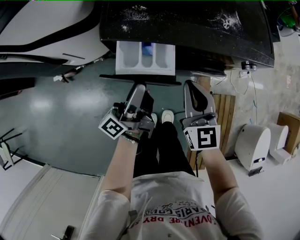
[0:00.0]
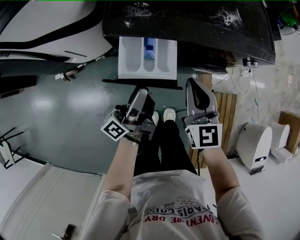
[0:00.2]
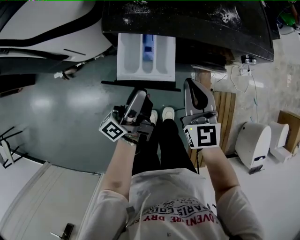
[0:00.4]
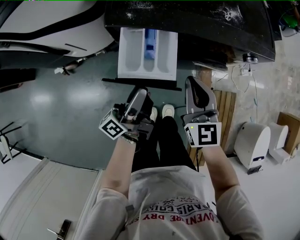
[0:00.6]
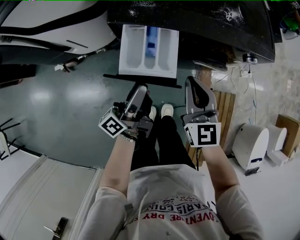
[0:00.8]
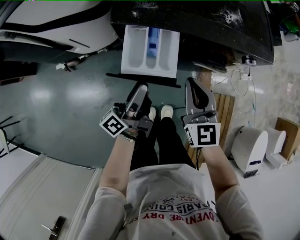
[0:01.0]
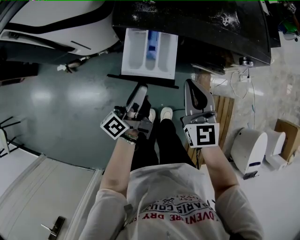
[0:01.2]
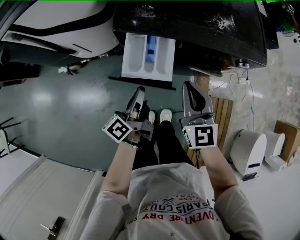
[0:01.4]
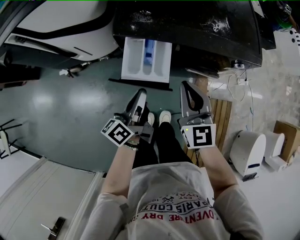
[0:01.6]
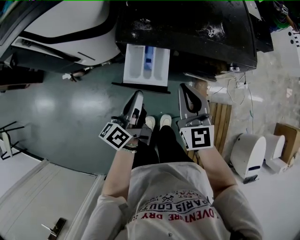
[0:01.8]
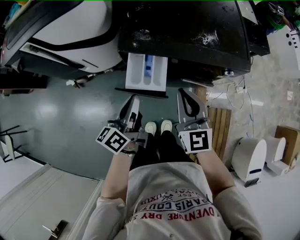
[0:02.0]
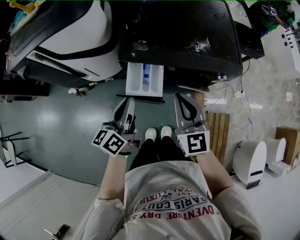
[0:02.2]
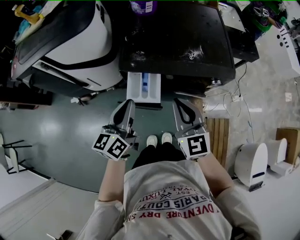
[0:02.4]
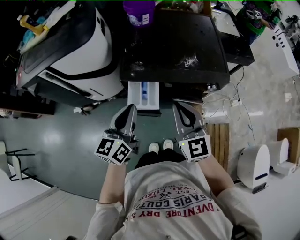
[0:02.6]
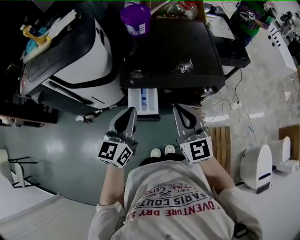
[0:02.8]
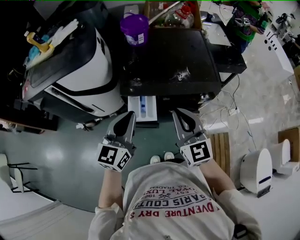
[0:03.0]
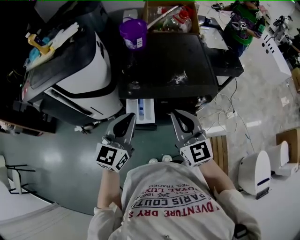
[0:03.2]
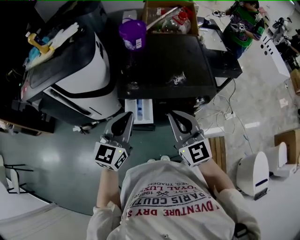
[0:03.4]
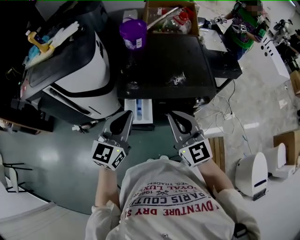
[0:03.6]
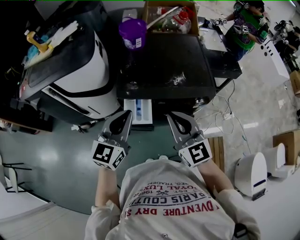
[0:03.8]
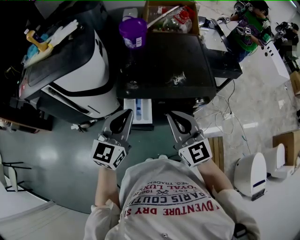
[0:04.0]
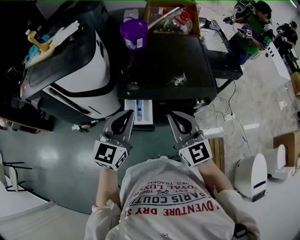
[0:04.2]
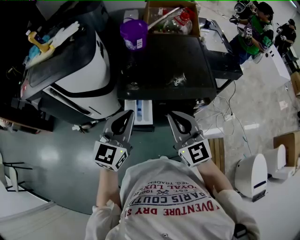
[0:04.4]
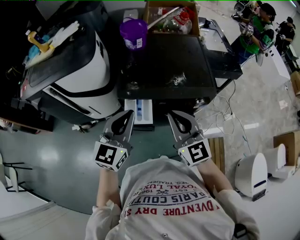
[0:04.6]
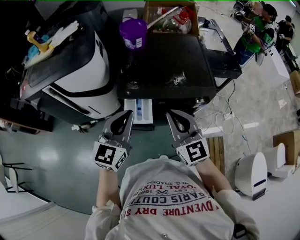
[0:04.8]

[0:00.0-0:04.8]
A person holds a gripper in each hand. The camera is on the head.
0:00.0 to 0:01.6: The left gripper heads backward, covering about 5 cm, turns by roughly 30 degrees, and closes its fingers. The right gripper travels upward by some 5 cm.
0:01.6 to 0:03.2: The two grippers go roughly 25 cm upward. The left gripper rotates around the line of its fingers by approximately 60 degrees, clockwise from behind.
0:03.2 to 0:04.8: The grippers make only small movements.

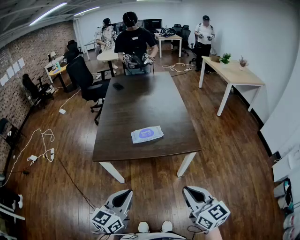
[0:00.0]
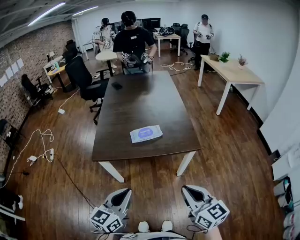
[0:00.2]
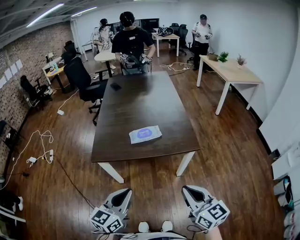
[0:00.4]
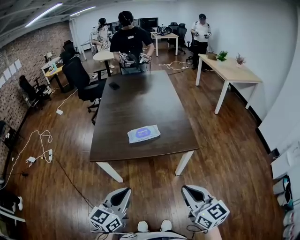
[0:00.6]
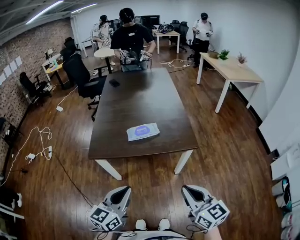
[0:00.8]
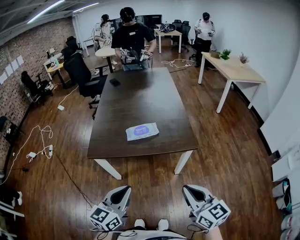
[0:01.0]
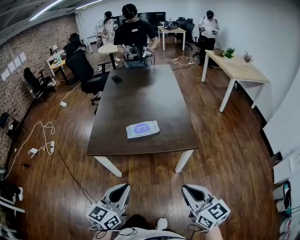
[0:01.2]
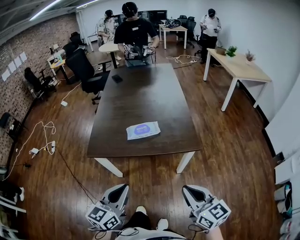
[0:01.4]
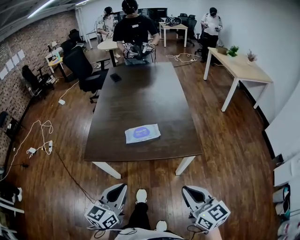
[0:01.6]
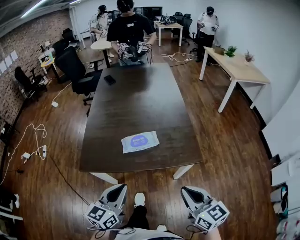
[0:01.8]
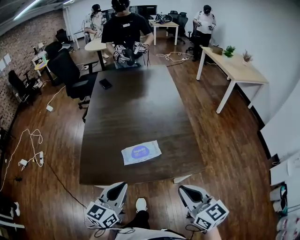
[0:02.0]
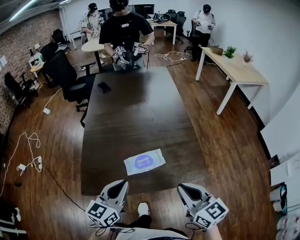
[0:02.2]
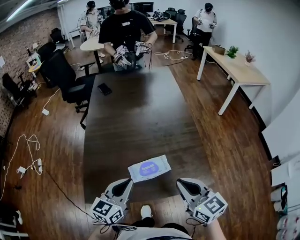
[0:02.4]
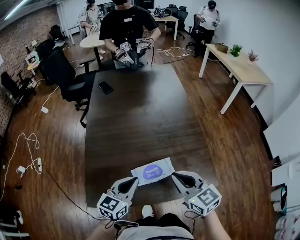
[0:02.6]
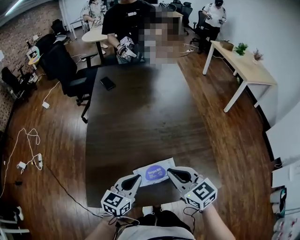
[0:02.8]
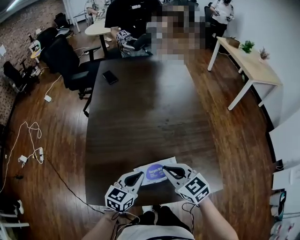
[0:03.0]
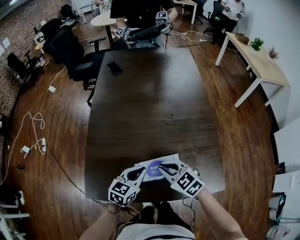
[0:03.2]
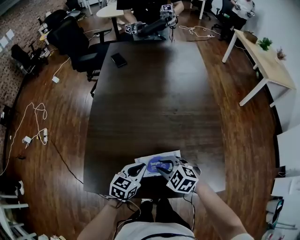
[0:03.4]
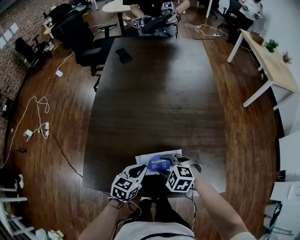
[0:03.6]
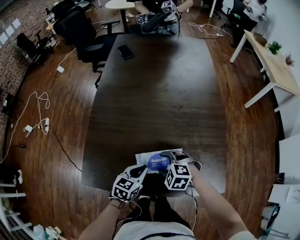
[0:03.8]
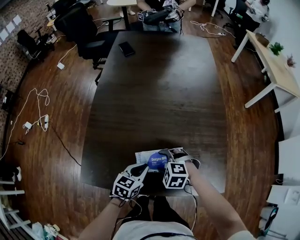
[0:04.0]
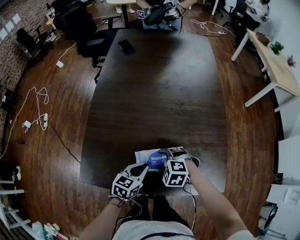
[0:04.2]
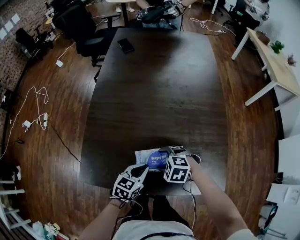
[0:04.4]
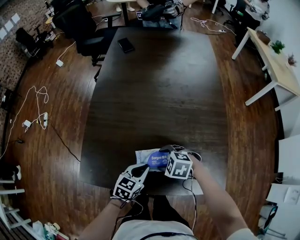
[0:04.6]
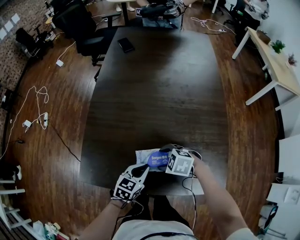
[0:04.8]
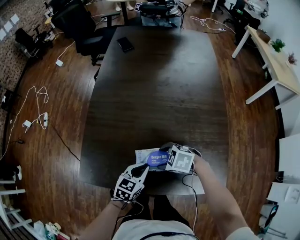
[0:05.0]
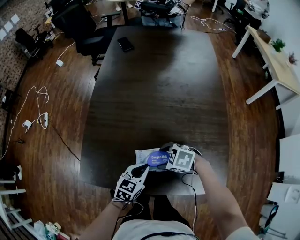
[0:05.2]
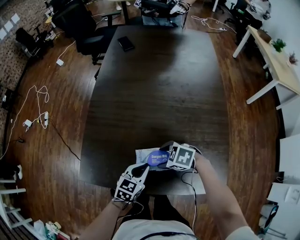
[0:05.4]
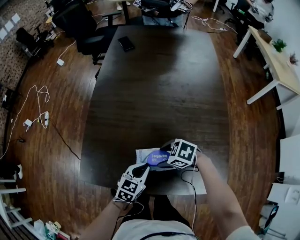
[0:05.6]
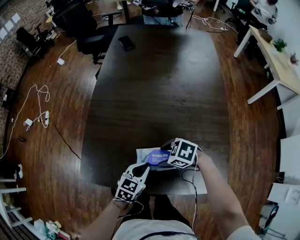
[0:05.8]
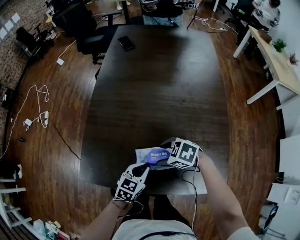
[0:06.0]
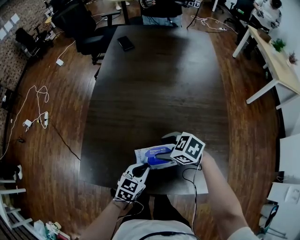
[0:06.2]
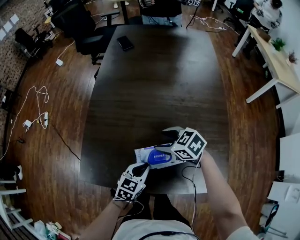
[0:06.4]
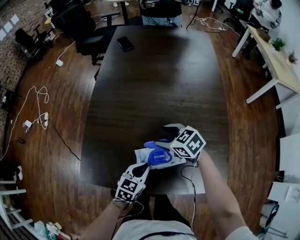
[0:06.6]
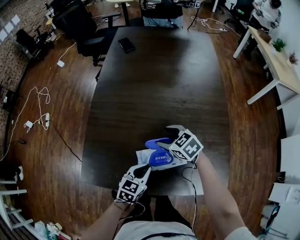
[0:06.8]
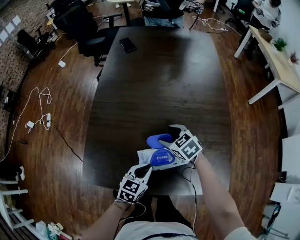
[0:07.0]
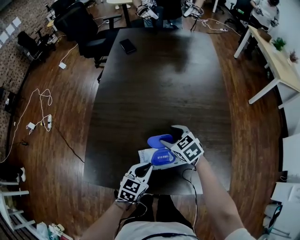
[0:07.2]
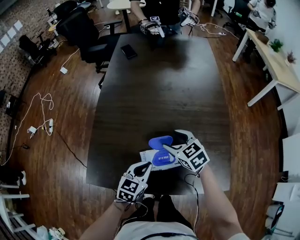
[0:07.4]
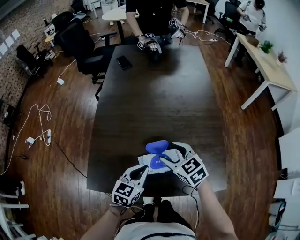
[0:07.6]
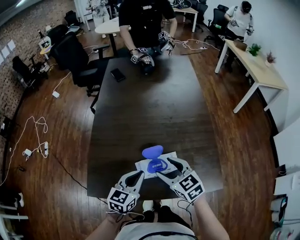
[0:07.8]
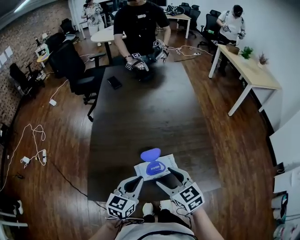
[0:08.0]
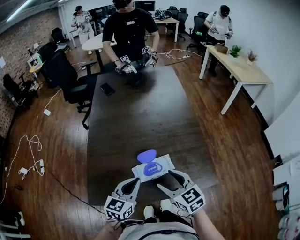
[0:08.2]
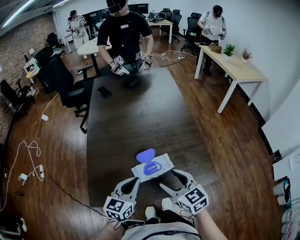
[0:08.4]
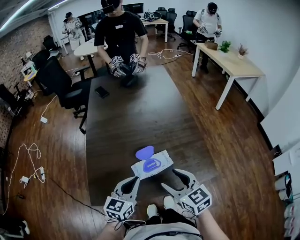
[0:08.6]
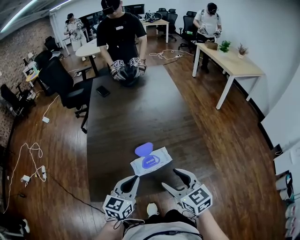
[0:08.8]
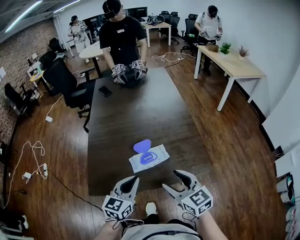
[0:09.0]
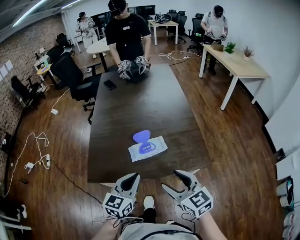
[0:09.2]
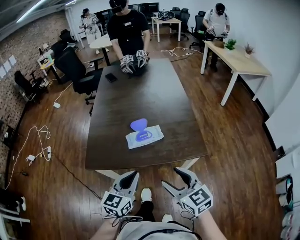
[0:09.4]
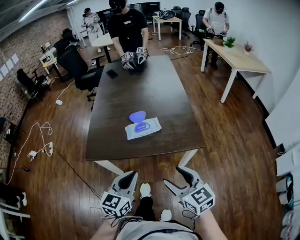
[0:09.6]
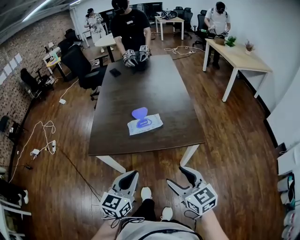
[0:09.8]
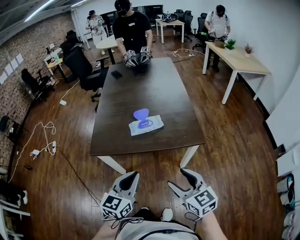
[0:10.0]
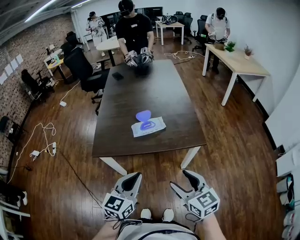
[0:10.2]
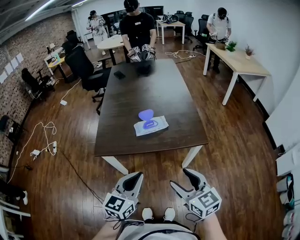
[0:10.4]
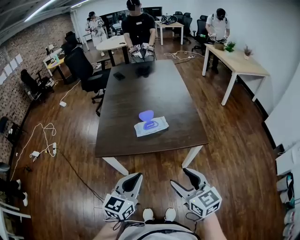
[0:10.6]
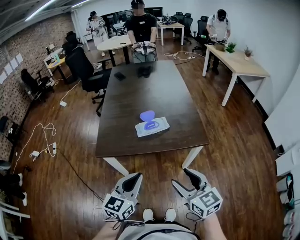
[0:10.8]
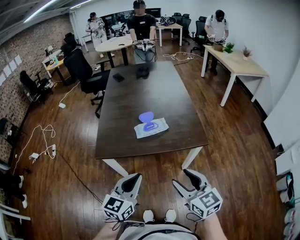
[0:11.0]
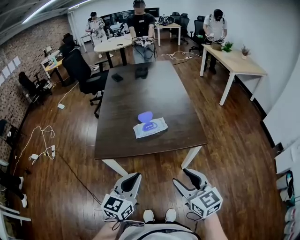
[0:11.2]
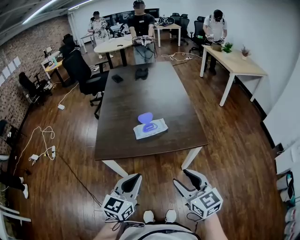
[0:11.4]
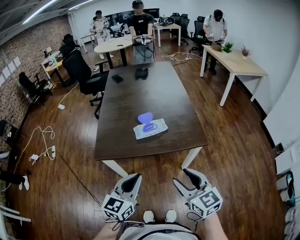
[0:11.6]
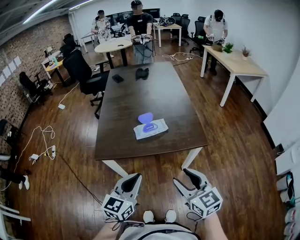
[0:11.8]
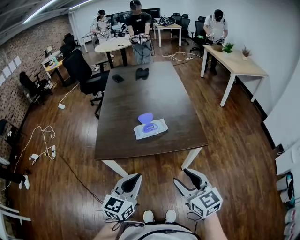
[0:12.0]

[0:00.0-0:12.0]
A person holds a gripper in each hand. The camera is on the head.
0:00.0 to 0:01.6: The right gripper moves forward and to the right, approximately 10 cm, while the left gripper is displaced forward by some 10 cm.
0:01.6 to 0:03.0: The left gripper goes roughly 40 cm forward. Meanwhile the right gripper goes some 40 cm forward and to the left, and swivels approximately 20 degrees.
0:03.0 to 0:04.4: Both grippers travel together downward, some 15 cm. The right gripper angles its fingers downward, by some 40 degrees, and opens its fingers.
0:04.4 to 0:06.0: The right gripper changes its angle by some 20 degrees.
0:06.0 to 0:07.6: Both grippers travel together upward, some 10 cm. The right gripper rotates roughly 50 degrees.
0:07.6 to 0:09.0: Both grippers travel together backward and upward, roughly 20 cm. The right gripper changes its angle by approximately 20 degrees.
0:09.0 to 0:10.4: The grippers both shift backward by roughly 25 cm.
0:10.4 to 0:12.0: The grippers make only small movements.

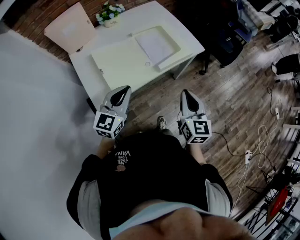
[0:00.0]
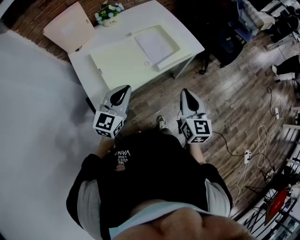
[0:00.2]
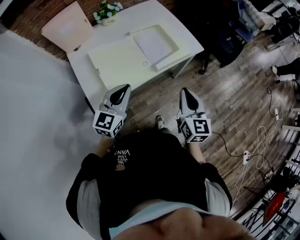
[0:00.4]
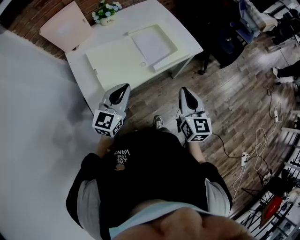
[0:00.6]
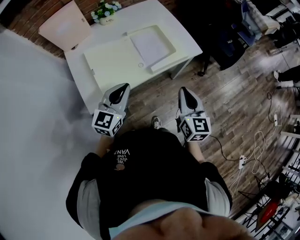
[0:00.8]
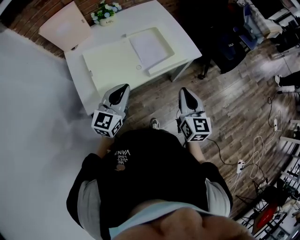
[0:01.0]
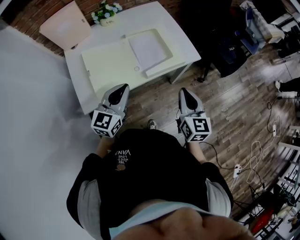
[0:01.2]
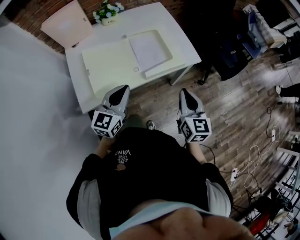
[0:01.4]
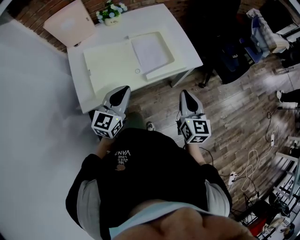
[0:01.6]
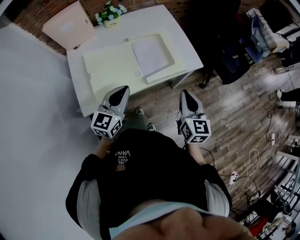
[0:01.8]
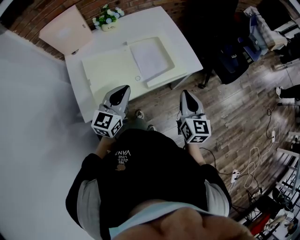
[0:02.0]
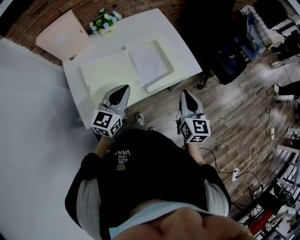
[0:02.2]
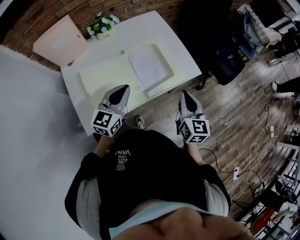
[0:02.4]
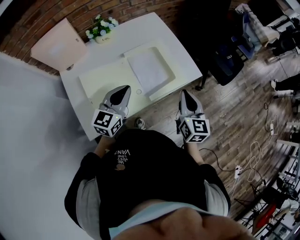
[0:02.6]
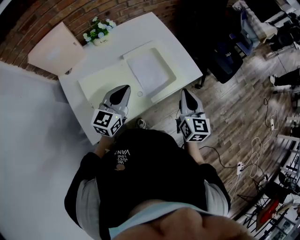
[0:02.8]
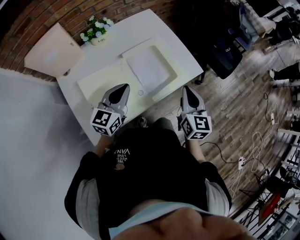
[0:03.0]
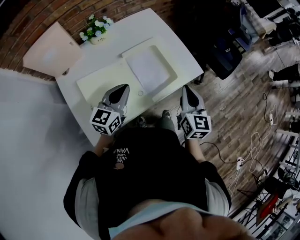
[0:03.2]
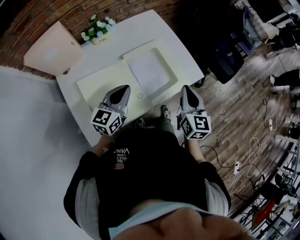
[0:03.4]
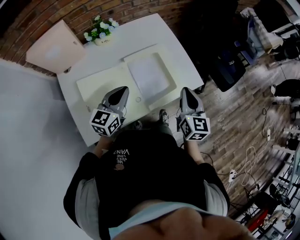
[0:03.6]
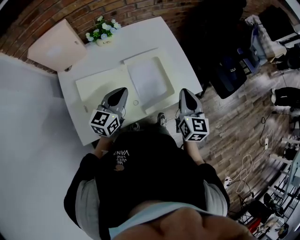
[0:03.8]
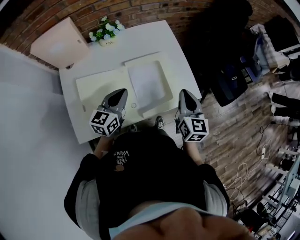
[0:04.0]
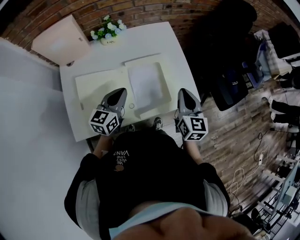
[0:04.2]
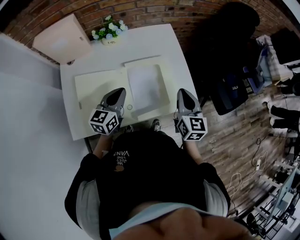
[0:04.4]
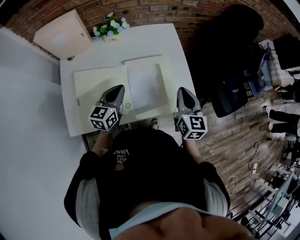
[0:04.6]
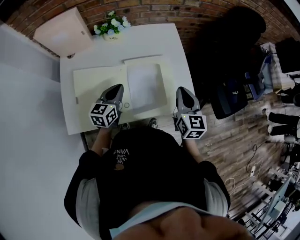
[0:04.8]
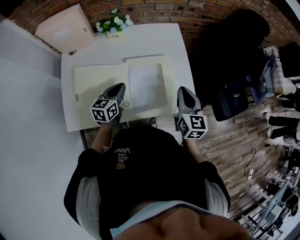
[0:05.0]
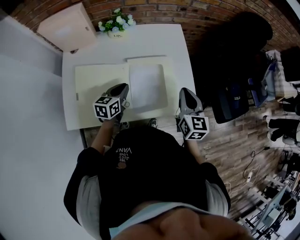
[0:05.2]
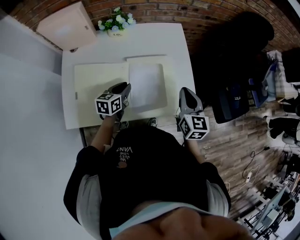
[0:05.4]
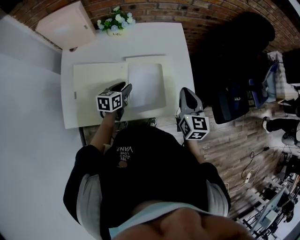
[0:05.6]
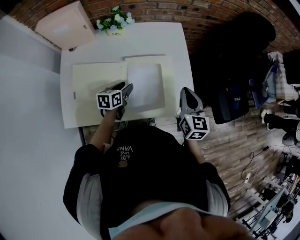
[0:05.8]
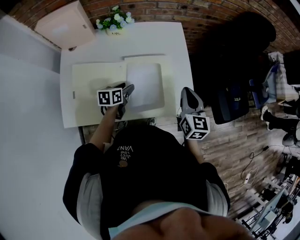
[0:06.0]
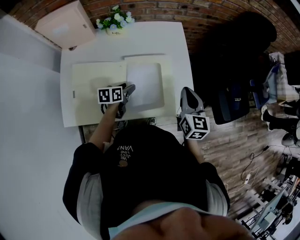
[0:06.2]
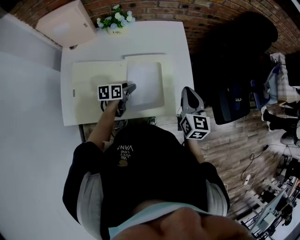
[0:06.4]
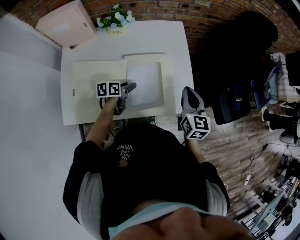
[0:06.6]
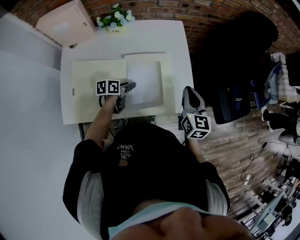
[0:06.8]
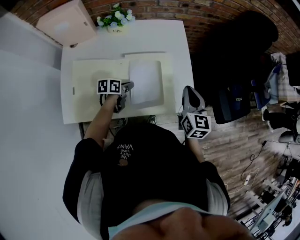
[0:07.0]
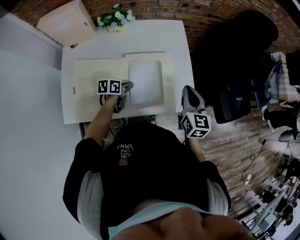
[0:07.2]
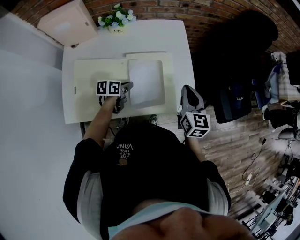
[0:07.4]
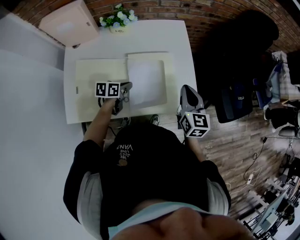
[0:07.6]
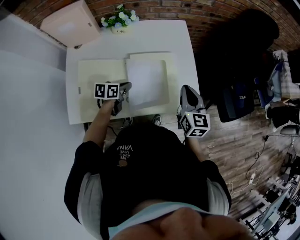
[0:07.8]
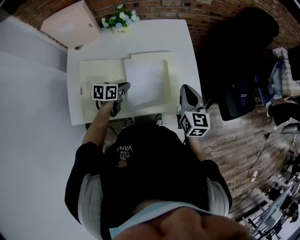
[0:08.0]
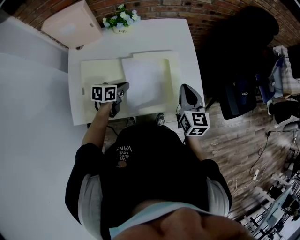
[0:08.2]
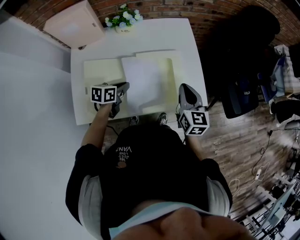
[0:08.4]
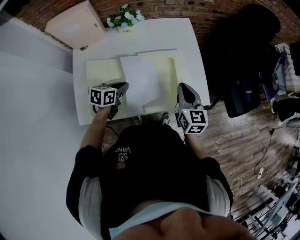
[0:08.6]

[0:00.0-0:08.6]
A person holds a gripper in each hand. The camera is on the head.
0:00.0 to 0:01.4: The left gripper travels to the right and forward by approximately 10 cm. Meanwhile the right gripper goes some 10 cm forward and to the right.
0:01.4 to 0:02.8: Both grippers travel together forward and to the left, about 15 cm.
0:02.8 to 0:04.4: The left gripper heads forward, covering some 5 cm, and turns by approximately 20 degrees; the right gripper travels forward by approximately 15 cm.
0:04.4 to 0:05.8: The right gripper moves some 5 cm; the left gripper heads downward, covering approximately 15 cm, changes its angle by some 30 degrees, and opens up.
0:05.8 to 0:07.2: The left gripper closes up.
0:07.2 to 0:08.6: The left gripper is displaced upward, to the left and backward by roughly 10 cm, and swivels some 20 degrees. Meanwhile the right gripper goes approximately 10 cm to the left.
